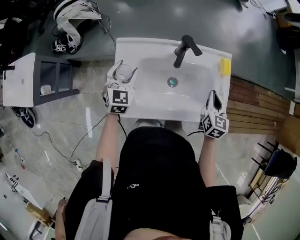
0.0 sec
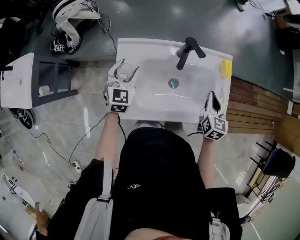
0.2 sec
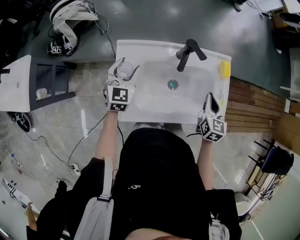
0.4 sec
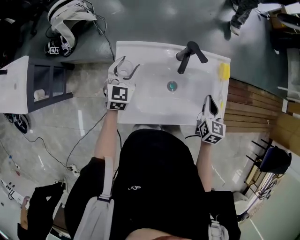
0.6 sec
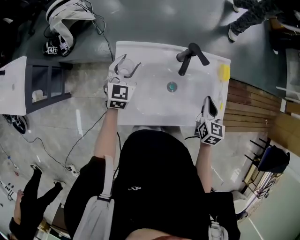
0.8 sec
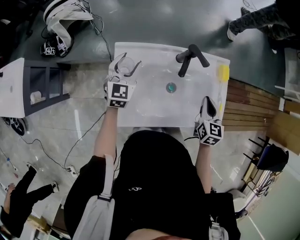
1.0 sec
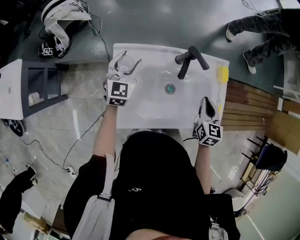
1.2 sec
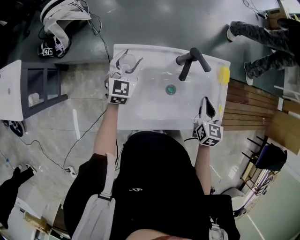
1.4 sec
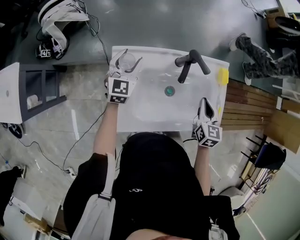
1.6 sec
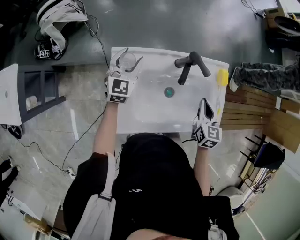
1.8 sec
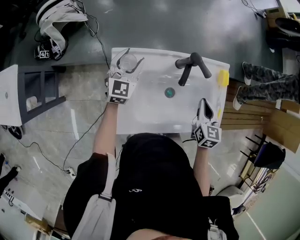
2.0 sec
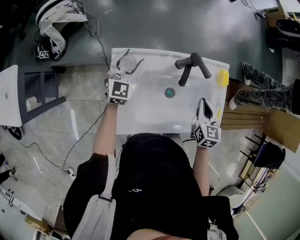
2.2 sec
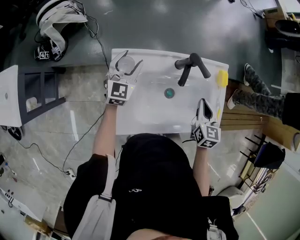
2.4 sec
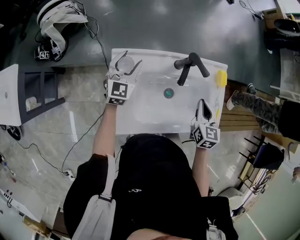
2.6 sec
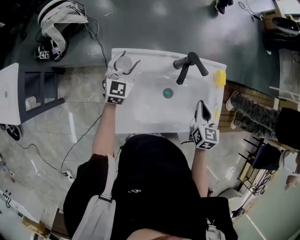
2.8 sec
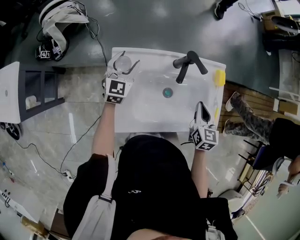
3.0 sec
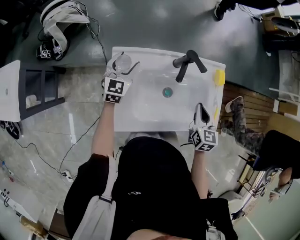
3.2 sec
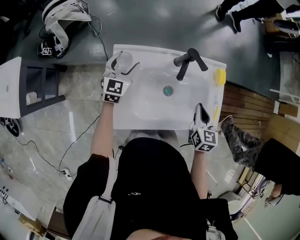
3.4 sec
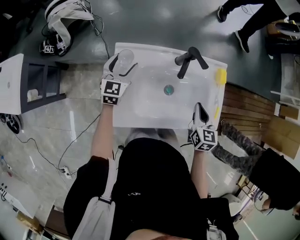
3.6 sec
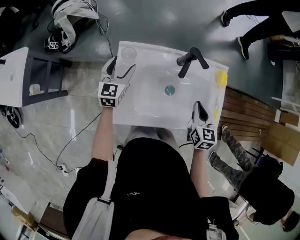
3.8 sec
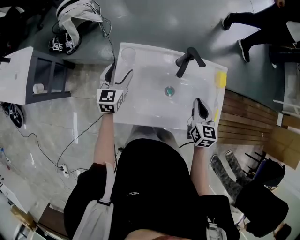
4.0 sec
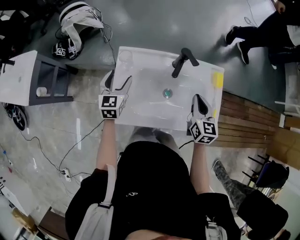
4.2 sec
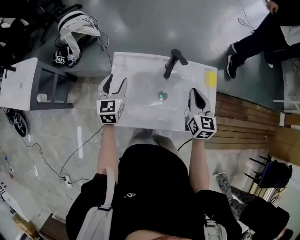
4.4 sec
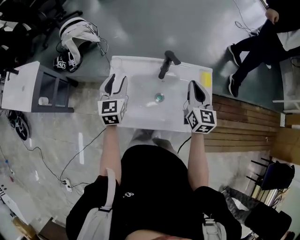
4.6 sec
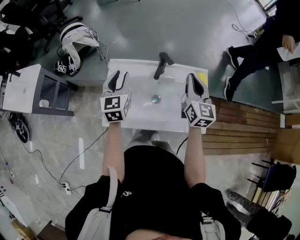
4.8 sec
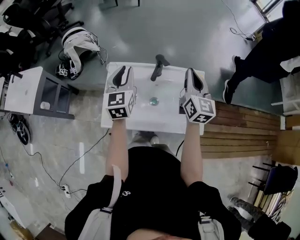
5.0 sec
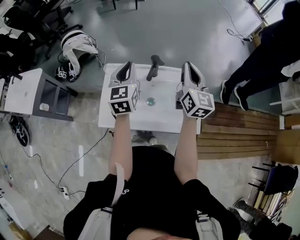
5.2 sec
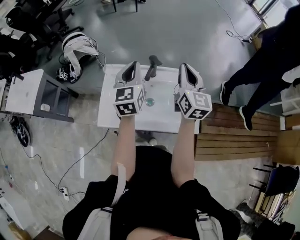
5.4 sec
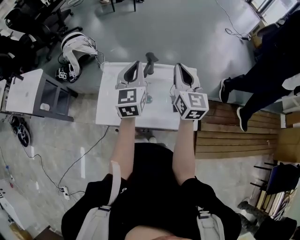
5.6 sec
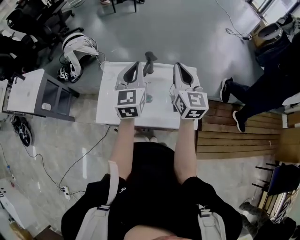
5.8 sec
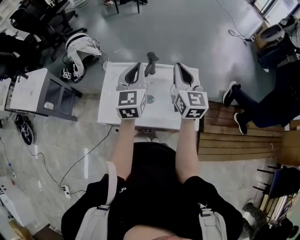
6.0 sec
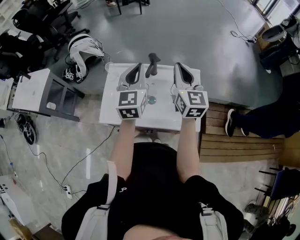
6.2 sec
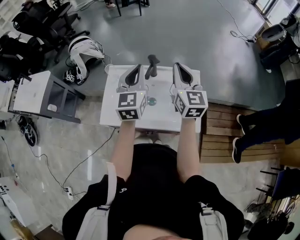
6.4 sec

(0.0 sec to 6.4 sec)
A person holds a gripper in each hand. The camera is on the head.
0.0 sec - 1.6 sec: The right gripper shifts about 5 cm to the left, while the left gripper moves forward, some 10 cm.
1.6 sec - 3.2 sec: The grippers make only small movements.
3.2 sec - 4.8 sec: The right gripper heads upward and forward, covering some 15 cm, and rotates roughly 30 degrees, while the left gripper shifts some 20 cm upward and backward, swivels approximately 20 degrees, and closes its fingers.
4.8 sec - 6.4 sec: The left gripper travels to the right and upward by about 20 cm, and closes up. Meanwhile the right gripper goes some 5 cm upward.

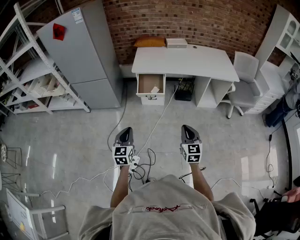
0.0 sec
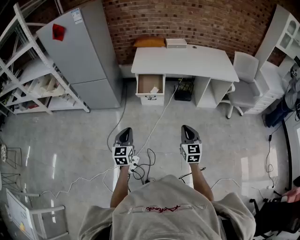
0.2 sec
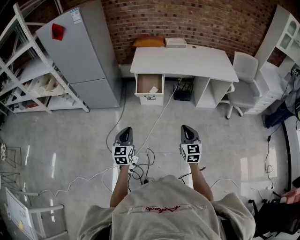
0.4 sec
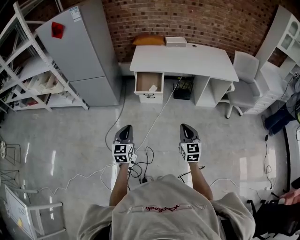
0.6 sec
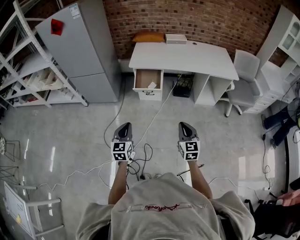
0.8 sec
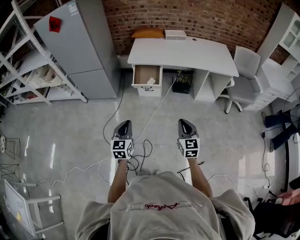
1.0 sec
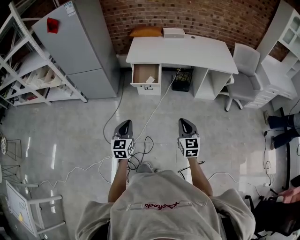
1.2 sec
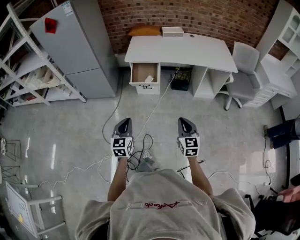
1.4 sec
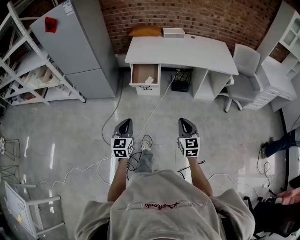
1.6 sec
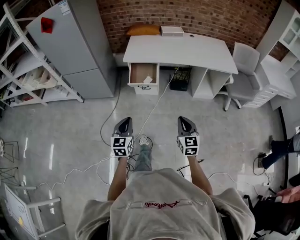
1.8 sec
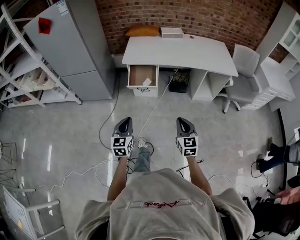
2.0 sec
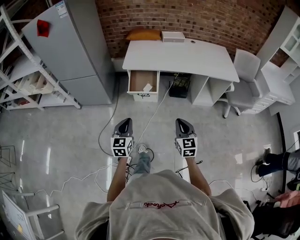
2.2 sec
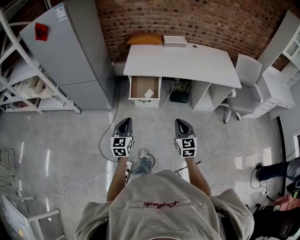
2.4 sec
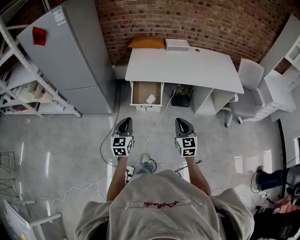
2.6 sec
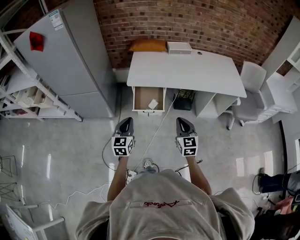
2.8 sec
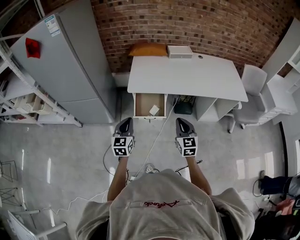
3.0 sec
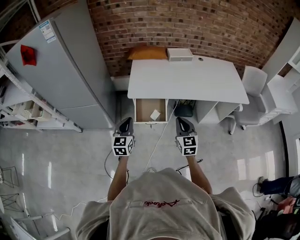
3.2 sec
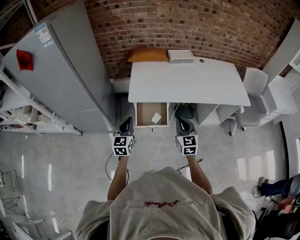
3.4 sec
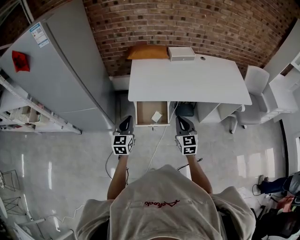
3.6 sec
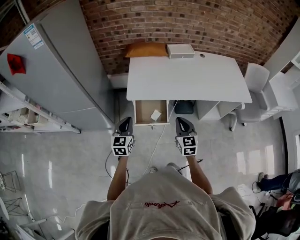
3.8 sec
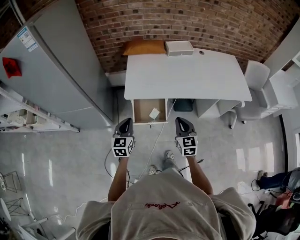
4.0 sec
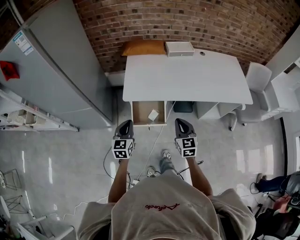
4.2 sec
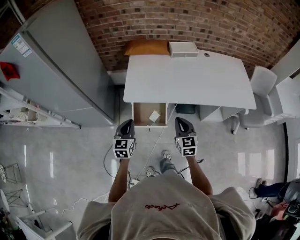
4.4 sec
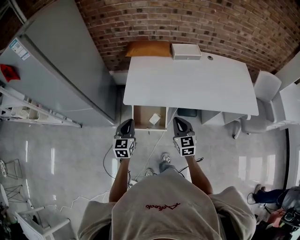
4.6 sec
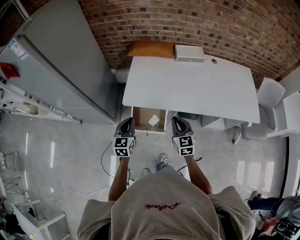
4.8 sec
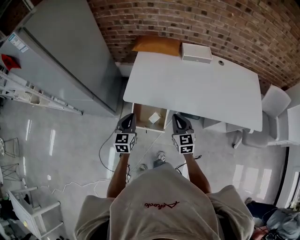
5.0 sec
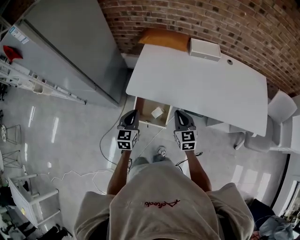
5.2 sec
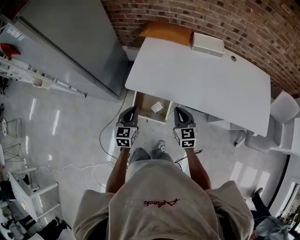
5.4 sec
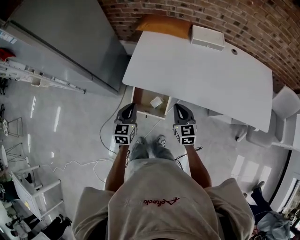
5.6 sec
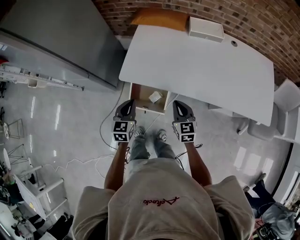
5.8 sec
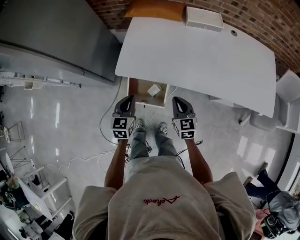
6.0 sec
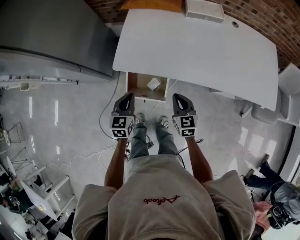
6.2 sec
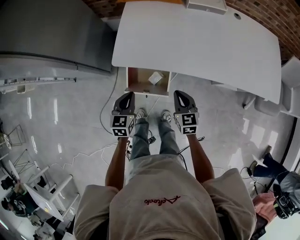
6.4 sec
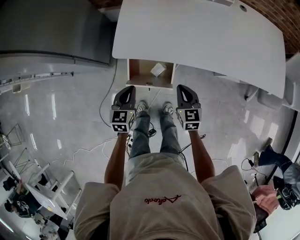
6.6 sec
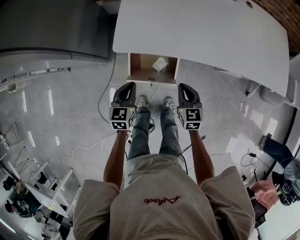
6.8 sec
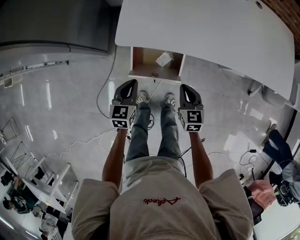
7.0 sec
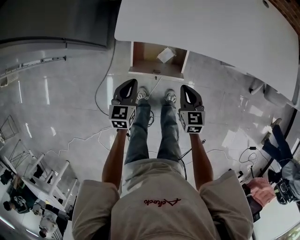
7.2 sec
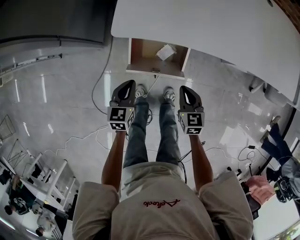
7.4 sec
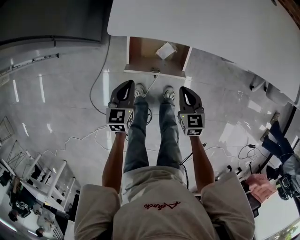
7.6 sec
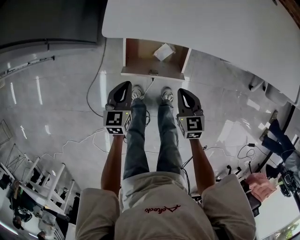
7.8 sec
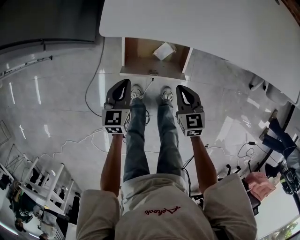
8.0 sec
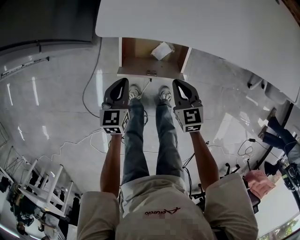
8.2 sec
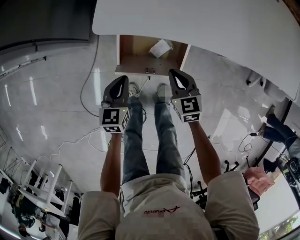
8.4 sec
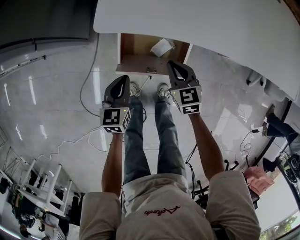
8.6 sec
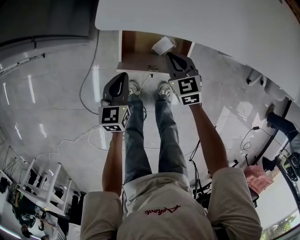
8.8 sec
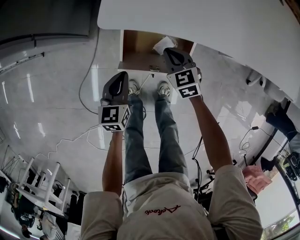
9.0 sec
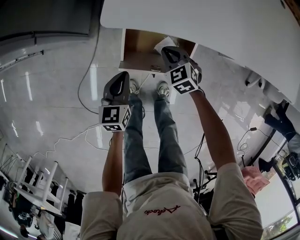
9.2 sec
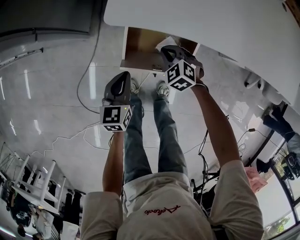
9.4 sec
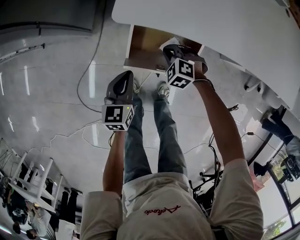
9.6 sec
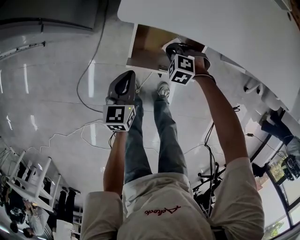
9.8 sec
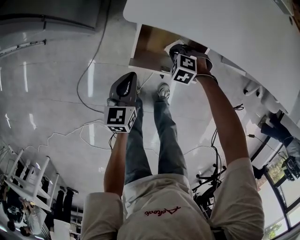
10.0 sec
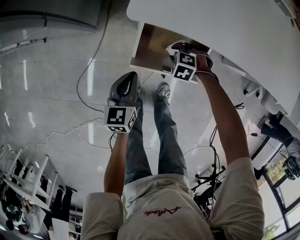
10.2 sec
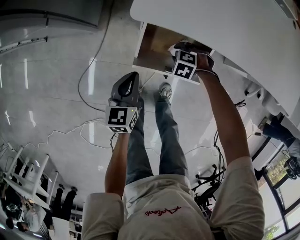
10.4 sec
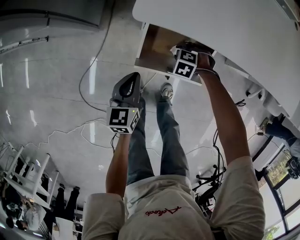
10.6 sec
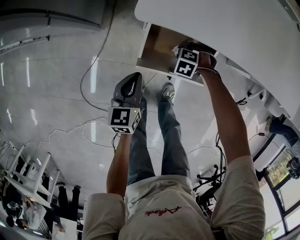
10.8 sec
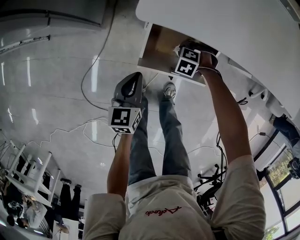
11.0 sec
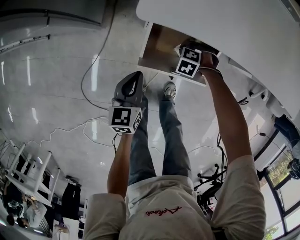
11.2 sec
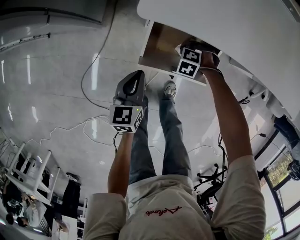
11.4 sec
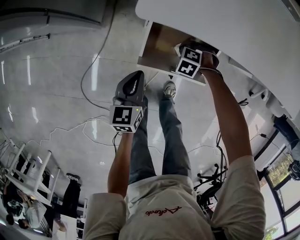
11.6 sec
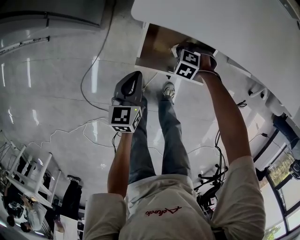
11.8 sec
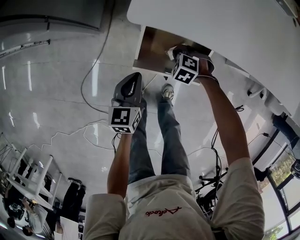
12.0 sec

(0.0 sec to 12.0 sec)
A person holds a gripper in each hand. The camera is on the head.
0.0 sec - 1.6 sec: Both grippers travel together to the right, about 5 cm.
1.6 sec - 3.0 sec: Both grippers move forward, roughly 35 cm.
3.0 sec - 4.4 sec: The grippers both shift forward by some 15 cm.
4.4 sec - 6.0 sec: The left gripper shifts approximately 10 cm to the right, forward and downward. The right gripper shifts some 15 cm downward and forward.
6.0 sec - 7.6 sec: The right gripper is displaced downward by roughly 20 cm; the left gripper goes approximately 25 cm downward and to the left.
7.6 sec - 9.0 sec: The right gripper heads forward, to the left and downward, covering some 15 cm, and swivels approximately 20 degrees.
9.0 sec - 10.4 sec: The right gripper heads downward, covering roughly 10 cm, angles its fingers downward, by roughly 40 degrees, and opens.
10.4 sec - 12.0 sec: The right gripper closes its fingers.

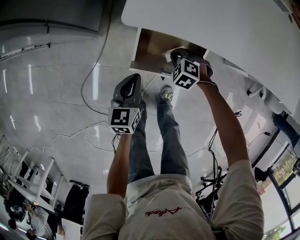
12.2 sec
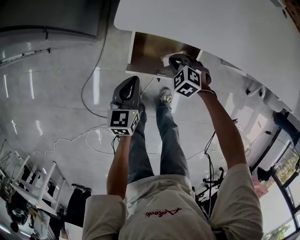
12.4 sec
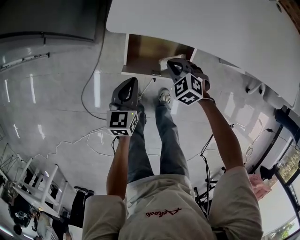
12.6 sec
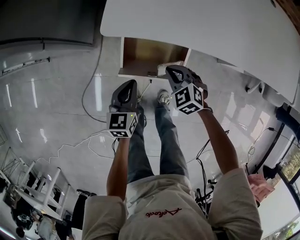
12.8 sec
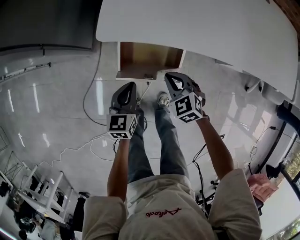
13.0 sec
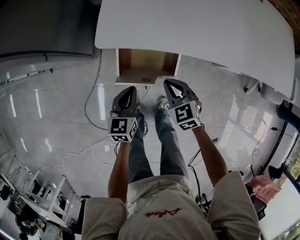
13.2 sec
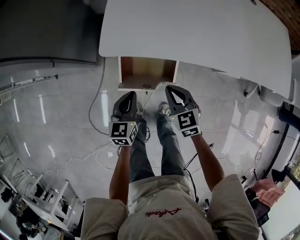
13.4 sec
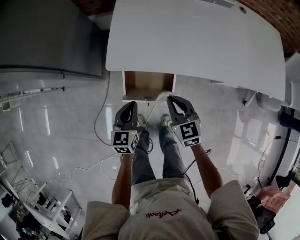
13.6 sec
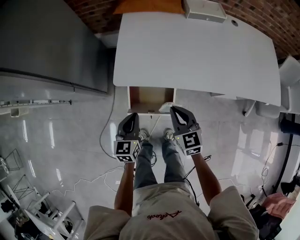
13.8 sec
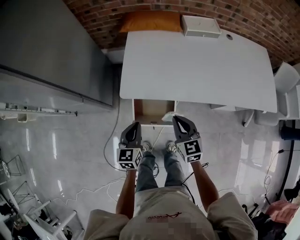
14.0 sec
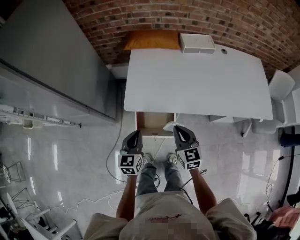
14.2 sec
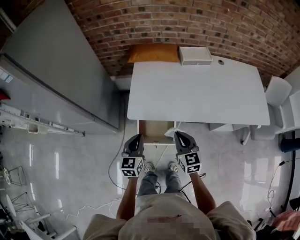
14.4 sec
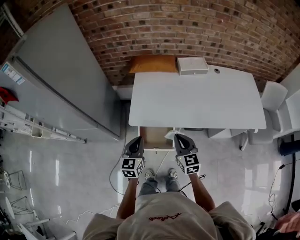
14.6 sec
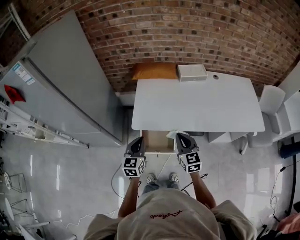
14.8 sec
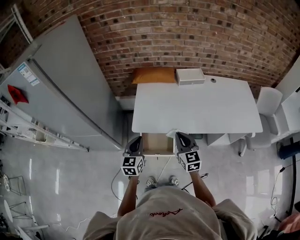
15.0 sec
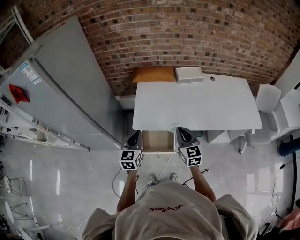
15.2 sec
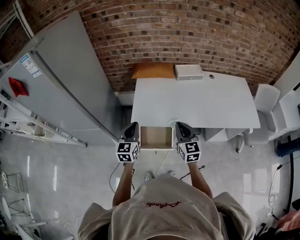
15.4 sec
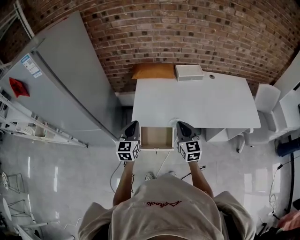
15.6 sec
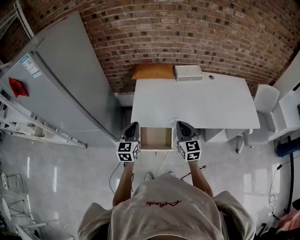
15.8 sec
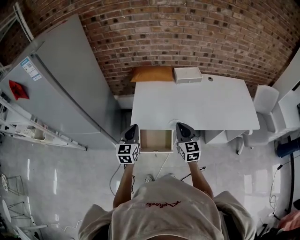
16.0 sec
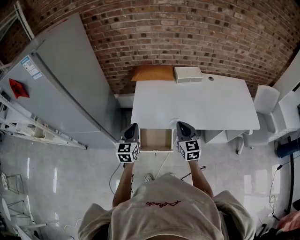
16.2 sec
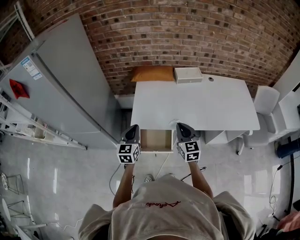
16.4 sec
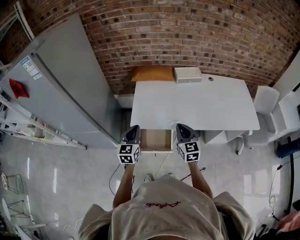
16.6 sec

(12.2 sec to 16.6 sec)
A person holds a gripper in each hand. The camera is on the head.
12.2 sec - 13.6 sec: The right gripper shifts approximately 25 cm upward, and angles its fingers upward, by some 40 degrees; the left gripper is displaced upward and to the right by roughly 15 cm.
13.6 sec - 15.2 sec: Both grippers travel together upward, about 25 cm. The right gripper rotates some 20 degrees.
15.2 sec - 16.6 sec: There are only small adjustments of the grippers.

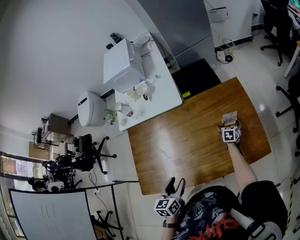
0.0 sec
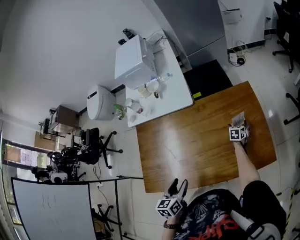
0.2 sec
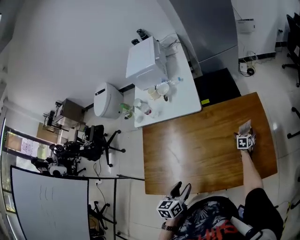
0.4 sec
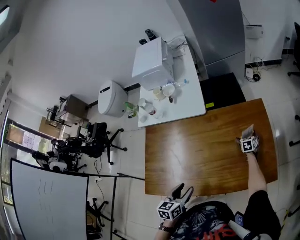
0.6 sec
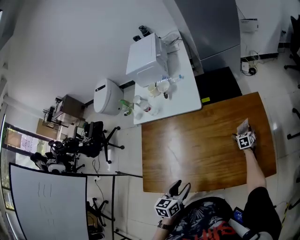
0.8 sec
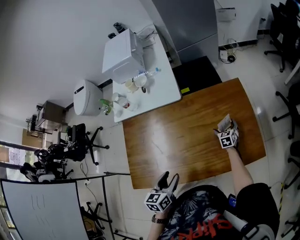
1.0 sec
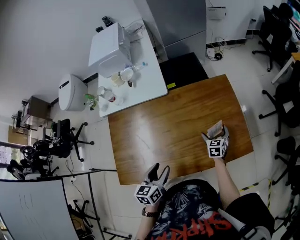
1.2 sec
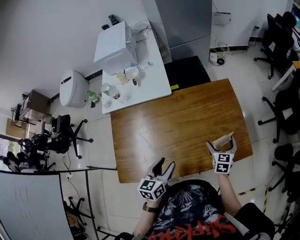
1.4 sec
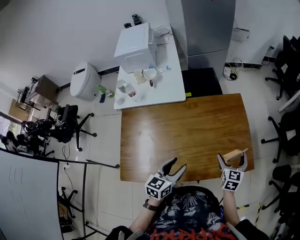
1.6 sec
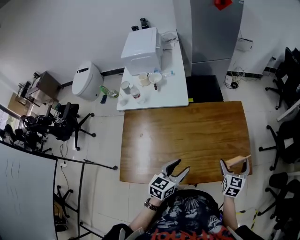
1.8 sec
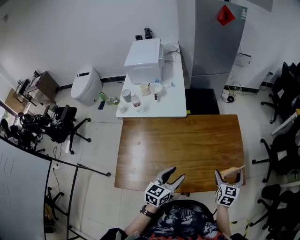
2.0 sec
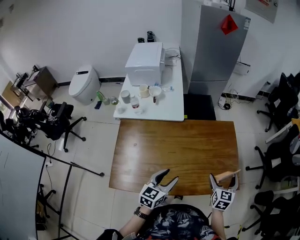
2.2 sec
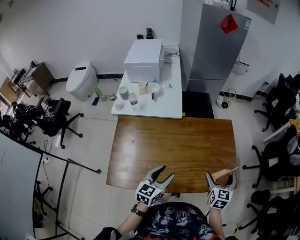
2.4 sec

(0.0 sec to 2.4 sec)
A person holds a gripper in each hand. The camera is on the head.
0.0 sec - 1.2 sec: The right gripper travels backward and upward by some 10 cm.
1.2 sec - 2.4 sec: The left gripper travels upward by approximately 5 cm. Meanwhile the right gripper goes about 25 cm upward and backward.
